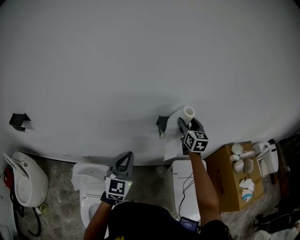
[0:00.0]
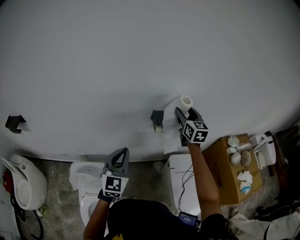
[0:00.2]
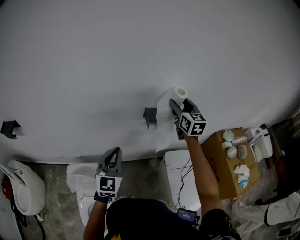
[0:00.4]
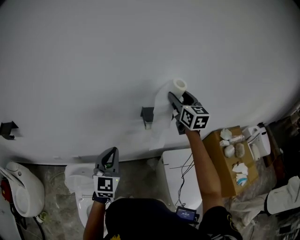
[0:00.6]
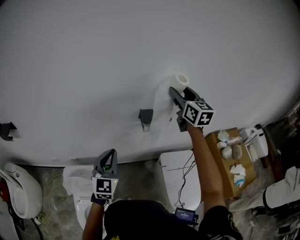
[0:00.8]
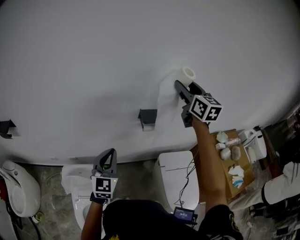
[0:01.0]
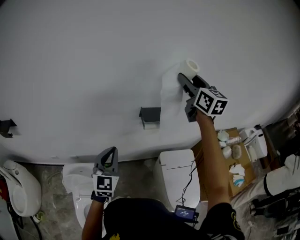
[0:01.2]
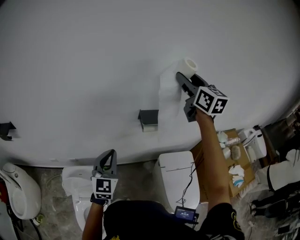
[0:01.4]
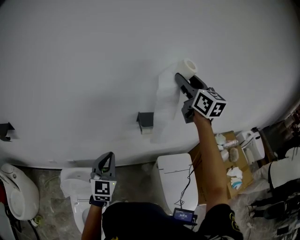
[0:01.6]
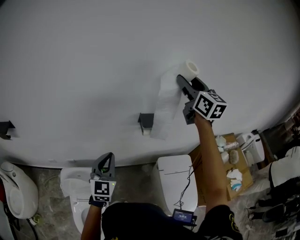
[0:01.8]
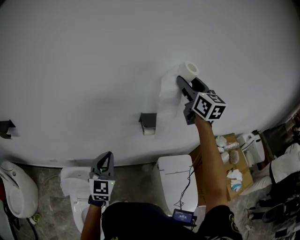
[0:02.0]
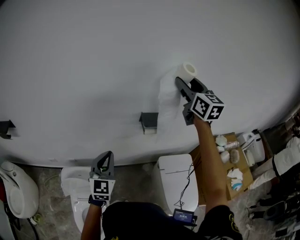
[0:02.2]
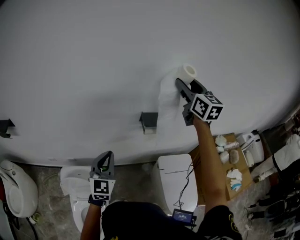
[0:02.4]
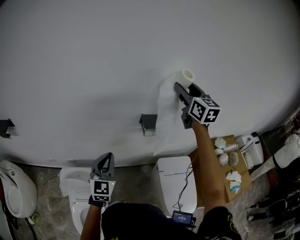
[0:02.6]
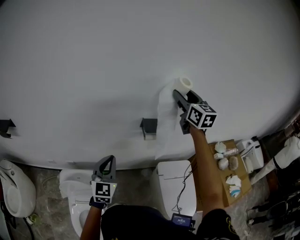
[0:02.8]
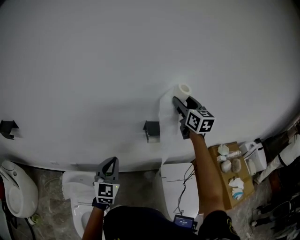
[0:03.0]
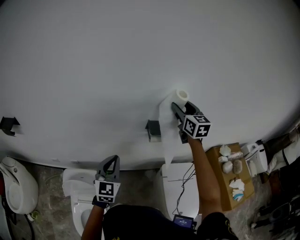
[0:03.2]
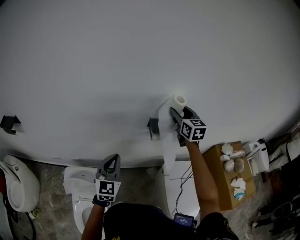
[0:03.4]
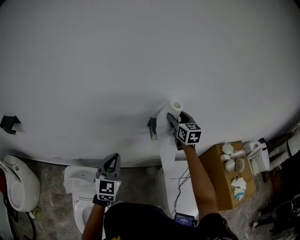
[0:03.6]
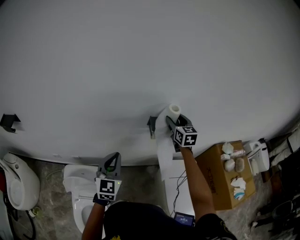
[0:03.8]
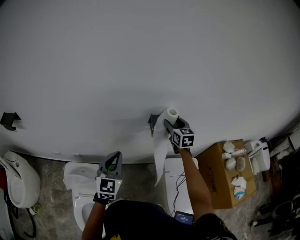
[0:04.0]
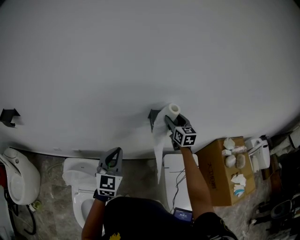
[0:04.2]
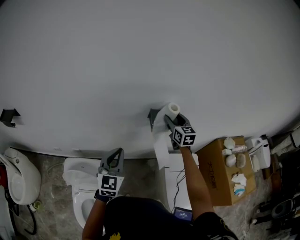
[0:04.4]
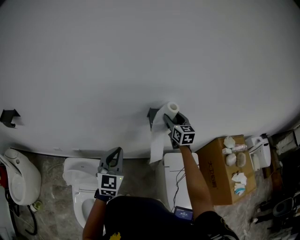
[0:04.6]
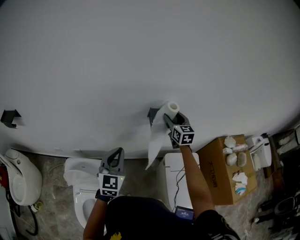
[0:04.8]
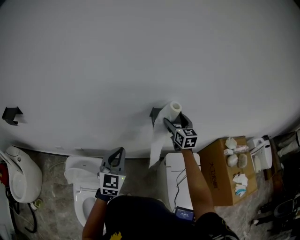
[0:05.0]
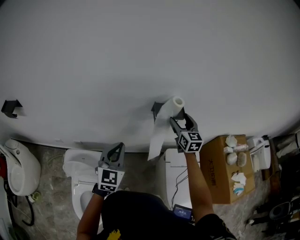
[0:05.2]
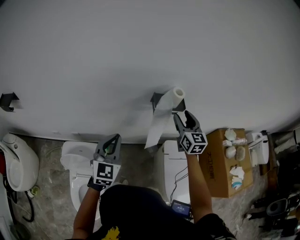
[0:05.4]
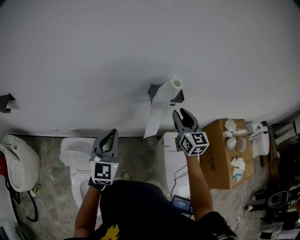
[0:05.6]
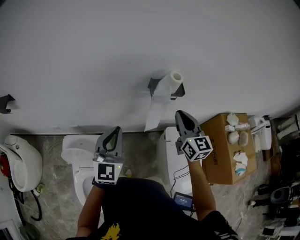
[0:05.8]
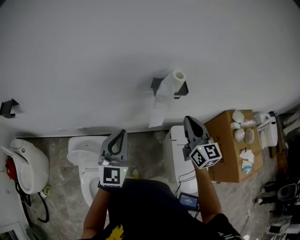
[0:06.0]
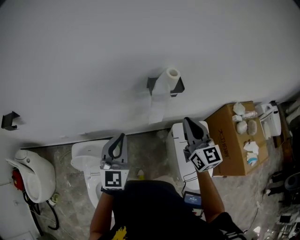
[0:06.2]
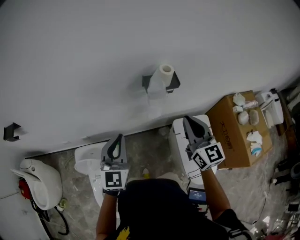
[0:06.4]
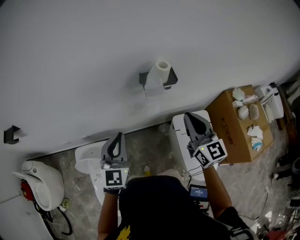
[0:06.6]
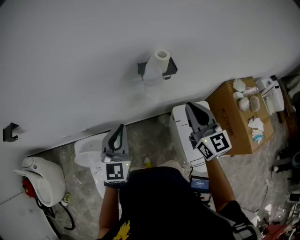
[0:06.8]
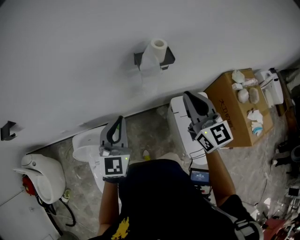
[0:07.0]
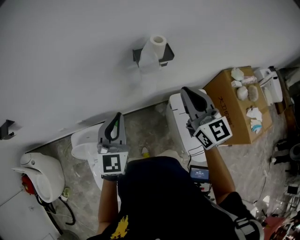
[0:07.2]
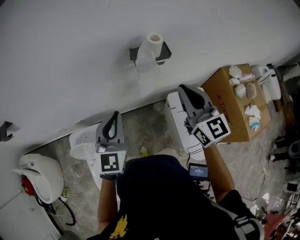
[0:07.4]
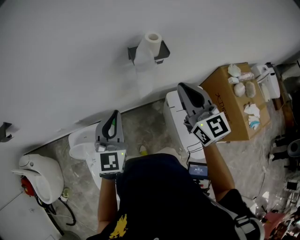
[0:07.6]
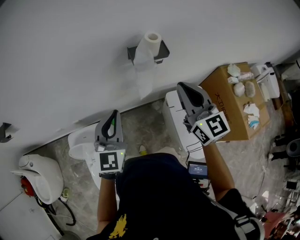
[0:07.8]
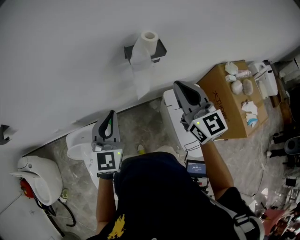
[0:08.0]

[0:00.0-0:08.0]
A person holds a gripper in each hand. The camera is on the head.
0:00.0 to 0:01.6: The right gripper shifts approximately 25 cm upward.
0:01.6 to 0:03.2: The right gripper goes about 15 cm downward.
0:03.2 to 0:04.8: The right gripper moves downward, roughly 20 cm.
0:04.8 to 0:06.4: The right gripper heads backward, covering some 20 cm, and closes its fingers.
0:06.4 to 0:08.0: The grippers stay close to where they were, moving slightly.

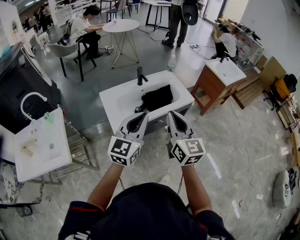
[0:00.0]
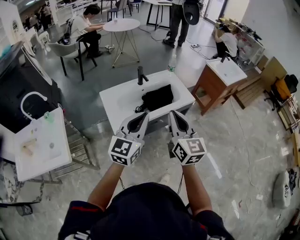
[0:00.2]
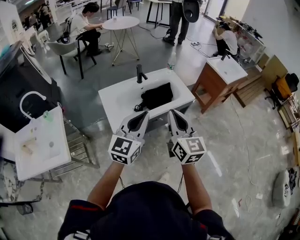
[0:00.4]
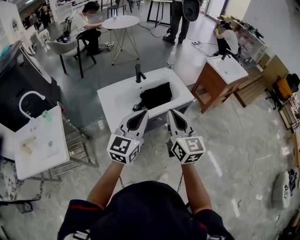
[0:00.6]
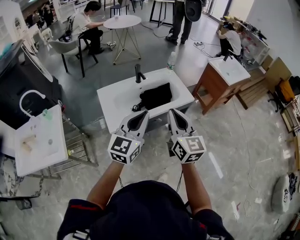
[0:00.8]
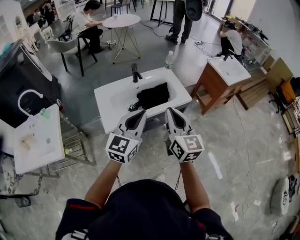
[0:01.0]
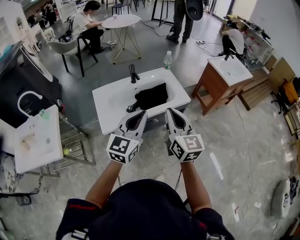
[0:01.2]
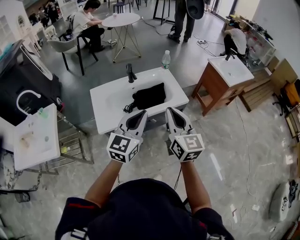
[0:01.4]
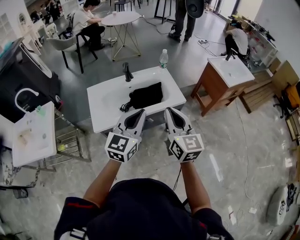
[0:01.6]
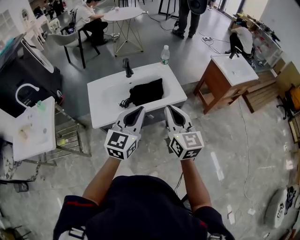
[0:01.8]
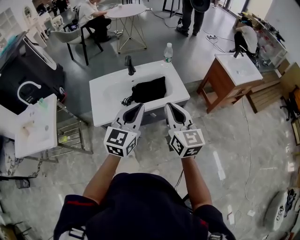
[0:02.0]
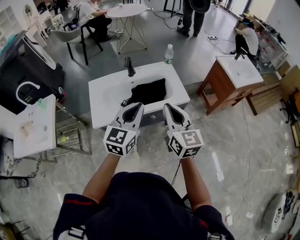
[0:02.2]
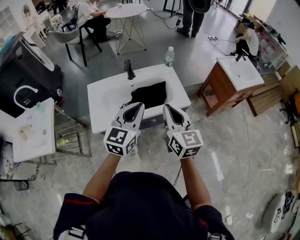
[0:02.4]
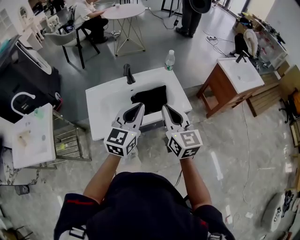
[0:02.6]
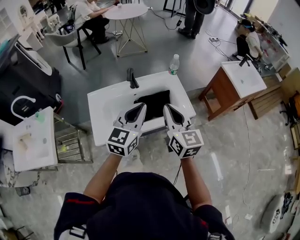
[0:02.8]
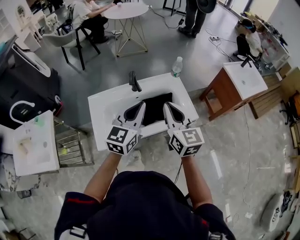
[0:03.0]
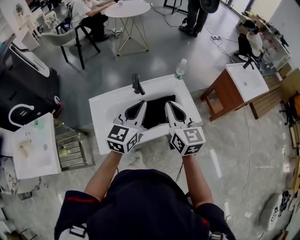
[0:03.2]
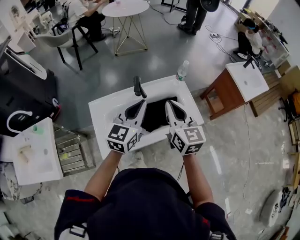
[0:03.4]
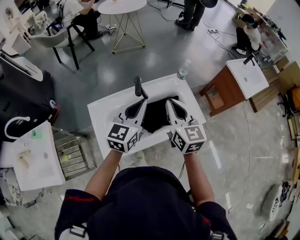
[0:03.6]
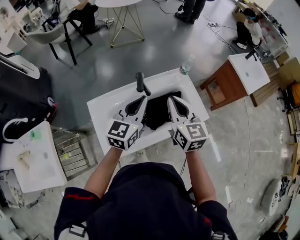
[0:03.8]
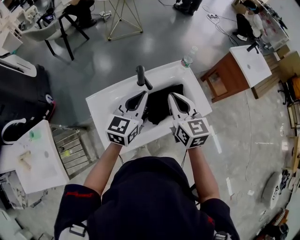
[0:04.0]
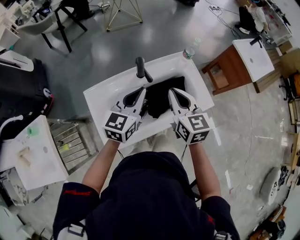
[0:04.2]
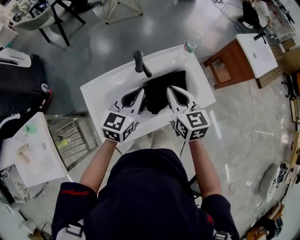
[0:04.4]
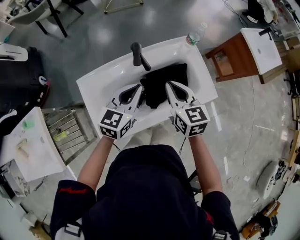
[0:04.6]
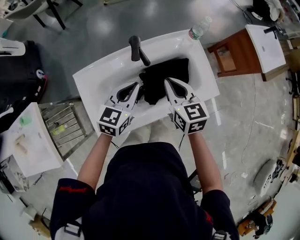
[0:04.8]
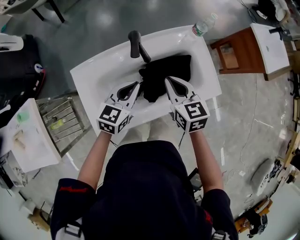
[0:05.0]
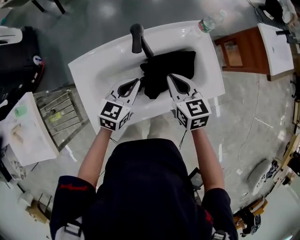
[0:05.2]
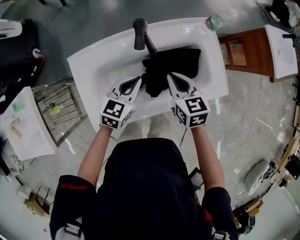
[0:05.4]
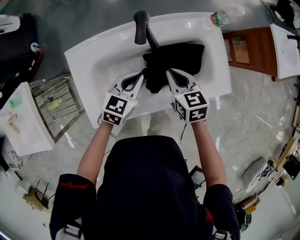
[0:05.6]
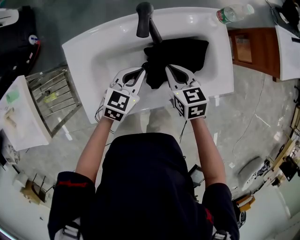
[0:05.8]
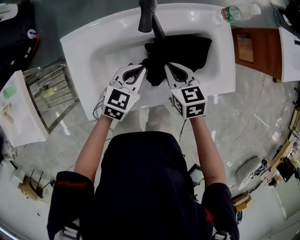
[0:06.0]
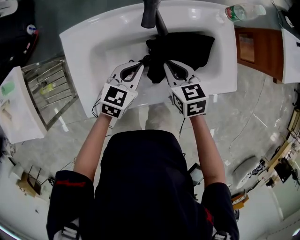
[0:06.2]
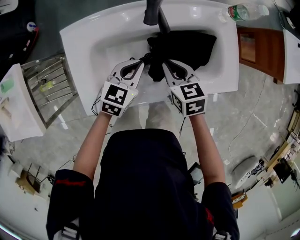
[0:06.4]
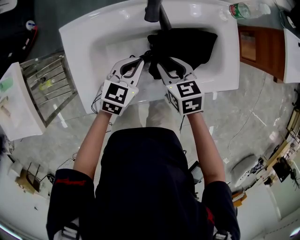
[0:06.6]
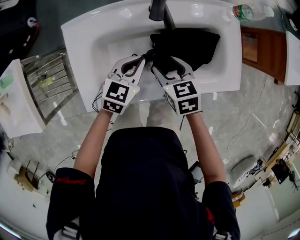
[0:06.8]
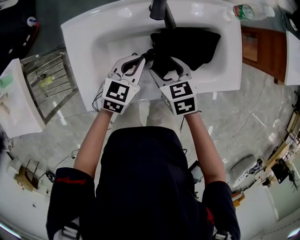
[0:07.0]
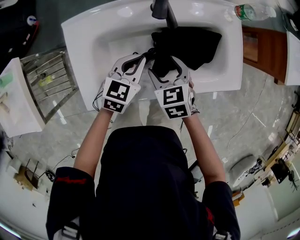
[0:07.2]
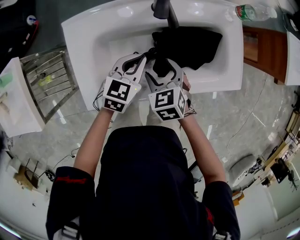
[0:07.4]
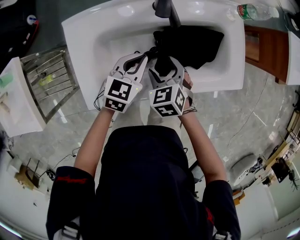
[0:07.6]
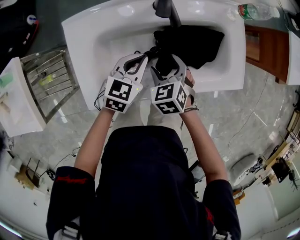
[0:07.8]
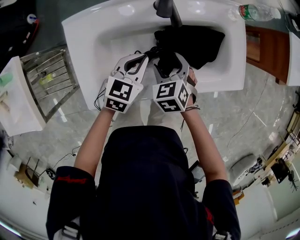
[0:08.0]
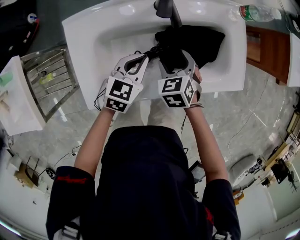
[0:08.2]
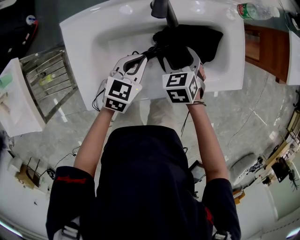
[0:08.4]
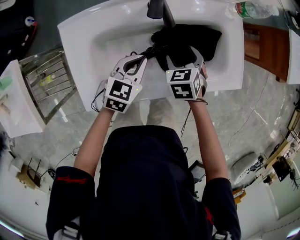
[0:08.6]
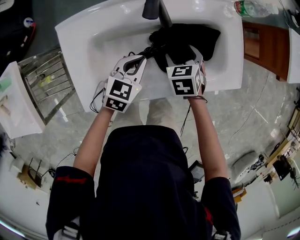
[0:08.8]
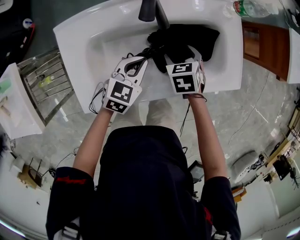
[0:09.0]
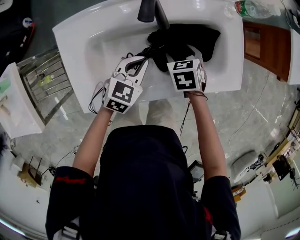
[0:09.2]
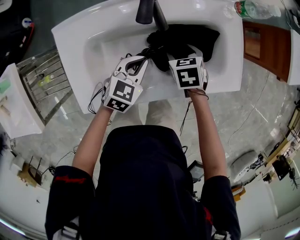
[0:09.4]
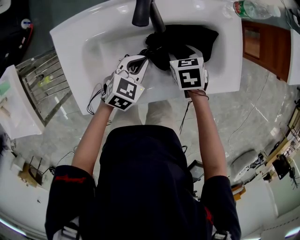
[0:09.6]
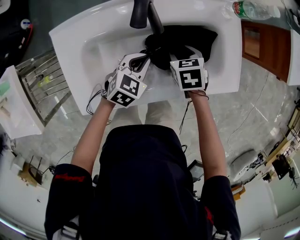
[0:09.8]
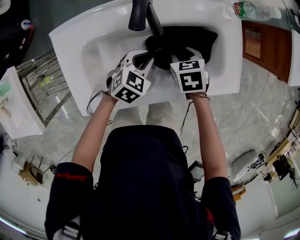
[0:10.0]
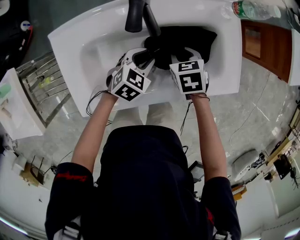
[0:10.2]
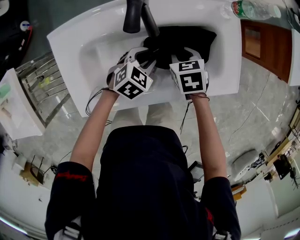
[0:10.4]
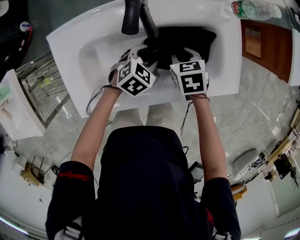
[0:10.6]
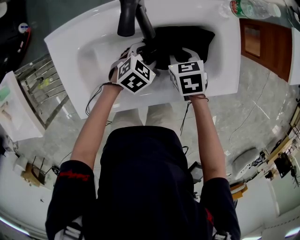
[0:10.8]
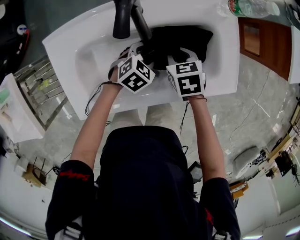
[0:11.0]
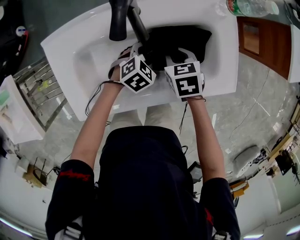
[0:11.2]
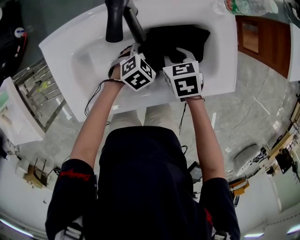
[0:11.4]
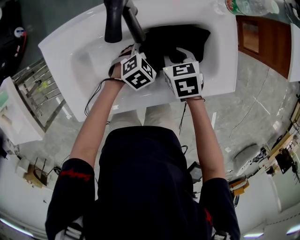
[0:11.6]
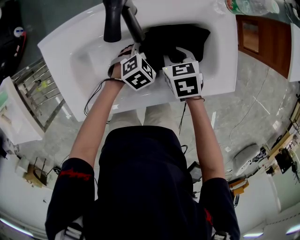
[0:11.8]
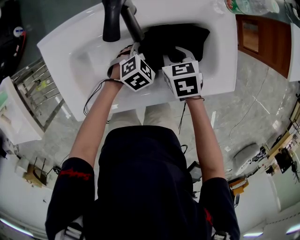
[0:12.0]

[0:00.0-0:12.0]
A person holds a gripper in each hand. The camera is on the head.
0:00.0 to 0:01.6: Both grippers travel together to the right and forward, approximately 15 cm.
0:01.6 to 0:03.0: The two grippers go about 20 cm forward.
0:03.0 to 0:04.4: The two grippers go roughly 15 cm downward, forward and to the left.
0:04.4 to 0:06.0: Both grippers travel together downward, roughly 20 cm. The right gripper swivels some 30 degrees.
0:06.0 to 0:07.6: The right gripper goes some 5 cm to the left, turns by some 30 degrees, and opens.
0:07.6 to 0:09.0: The right gripper travels forward and to the right by approximately 10 cm.
0:09.0 to 0:10.4: The right gripper closes up. The left gripper moves downward, about 5 cm, and opens up.
0:10.4 to 0:12.0: The left gripper is displaced downward by some 5 cm.

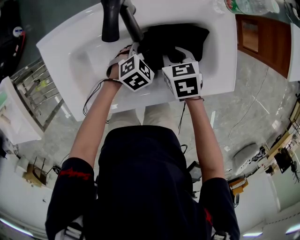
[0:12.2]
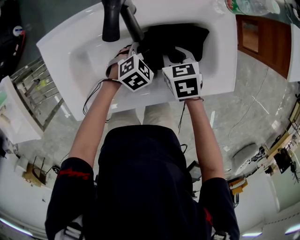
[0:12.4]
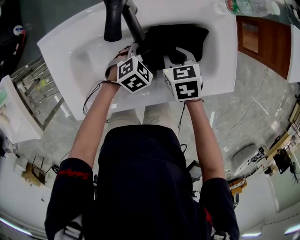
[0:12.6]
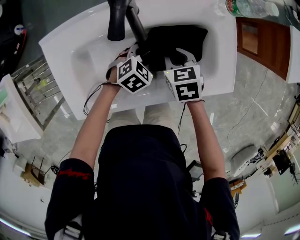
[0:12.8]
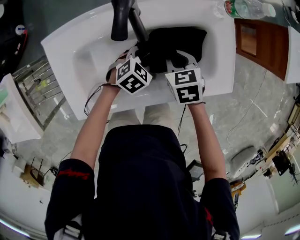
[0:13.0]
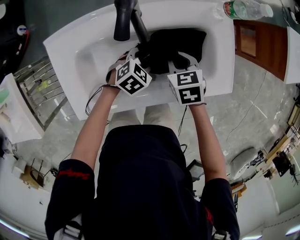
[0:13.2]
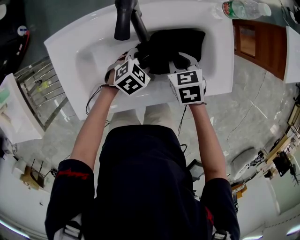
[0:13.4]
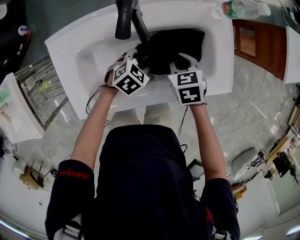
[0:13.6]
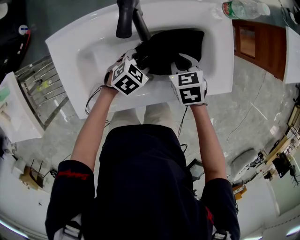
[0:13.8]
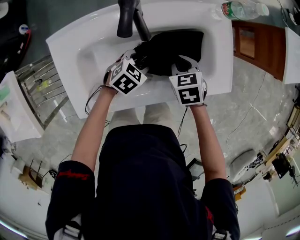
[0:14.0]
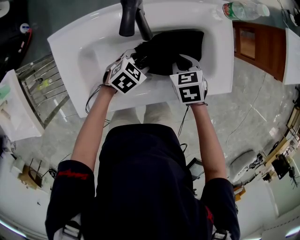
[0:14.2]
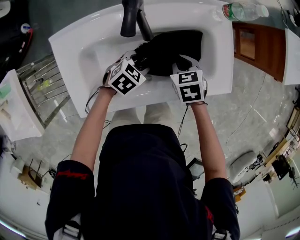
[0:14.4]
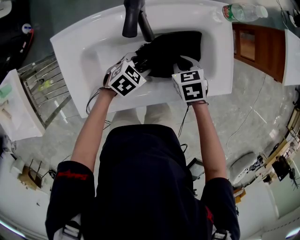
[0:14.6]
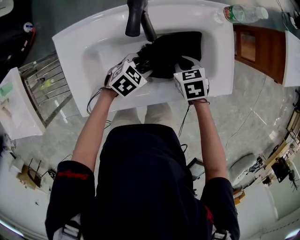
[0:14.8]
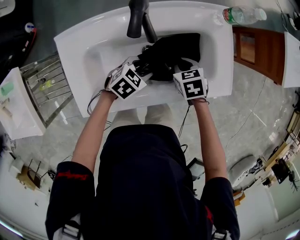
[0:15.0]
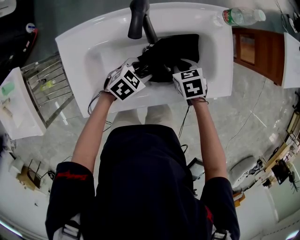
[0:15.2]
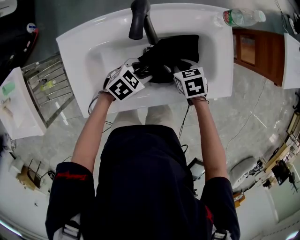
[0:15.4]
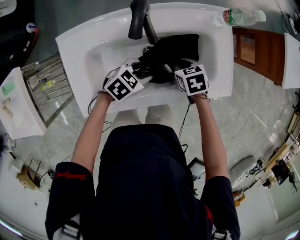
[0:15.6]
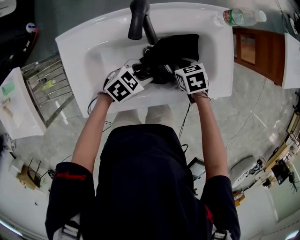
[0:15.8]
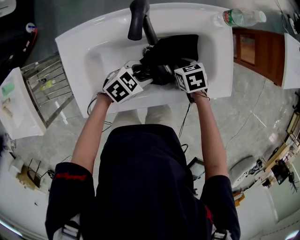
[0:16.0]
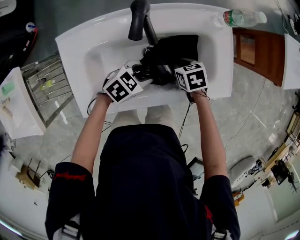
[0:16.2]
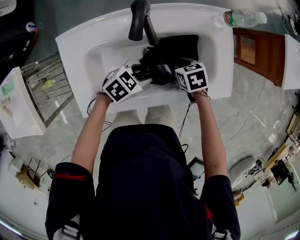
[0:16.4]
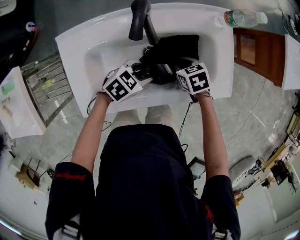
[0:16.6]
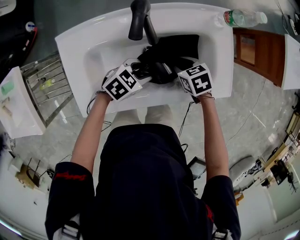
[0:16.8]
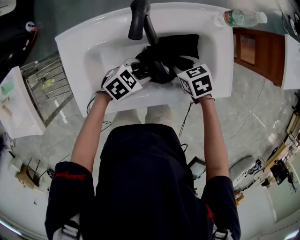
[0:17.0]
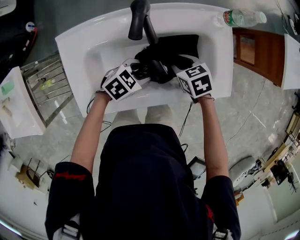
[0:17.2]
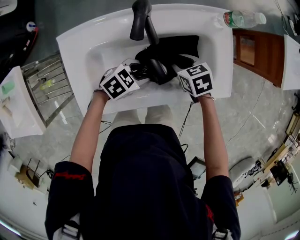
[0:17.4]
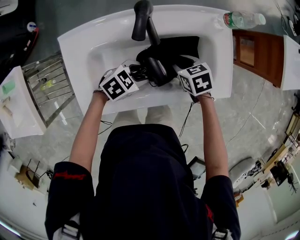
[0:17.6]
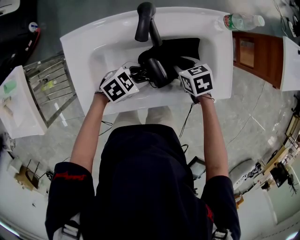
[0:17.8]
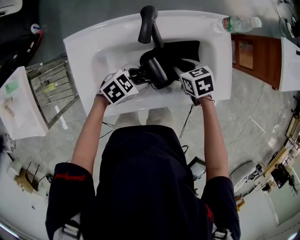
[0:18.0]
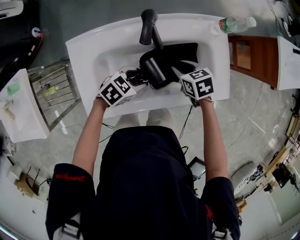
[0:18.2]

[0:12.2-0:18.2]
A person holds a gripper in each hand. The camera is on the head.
0:12.2 to 0:13.8: There are only small adjustments of the grippers.
0:13.8 to 0:16.6: The grippers stay close to where they were, moving slightly.
0:16.6 to 0:18.2: The right gripper shifts about 5 cm upward.
